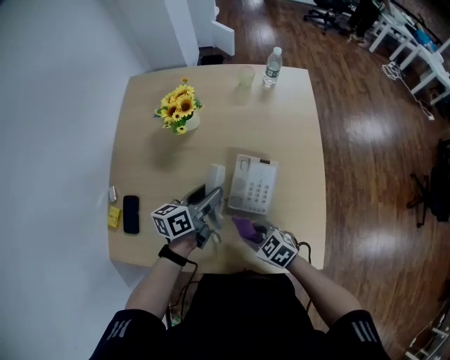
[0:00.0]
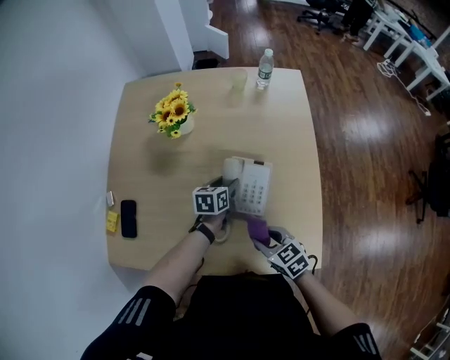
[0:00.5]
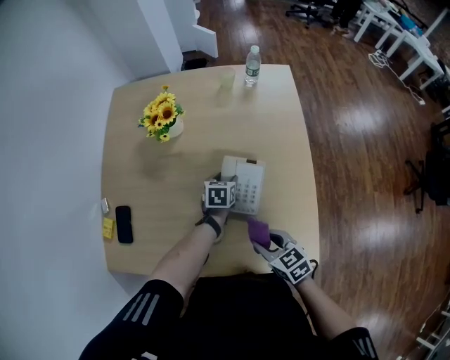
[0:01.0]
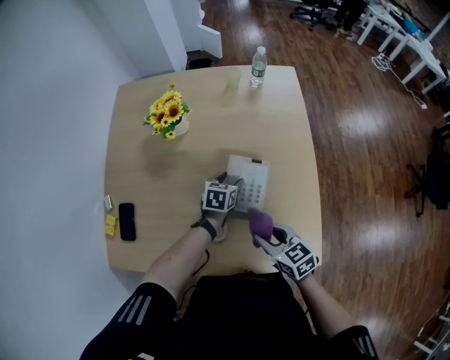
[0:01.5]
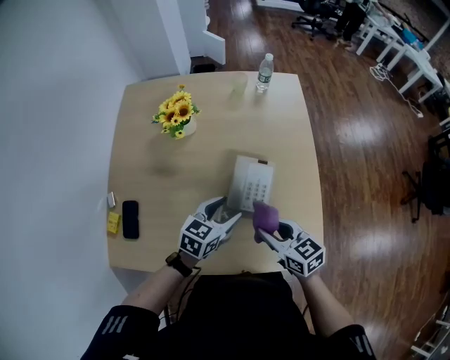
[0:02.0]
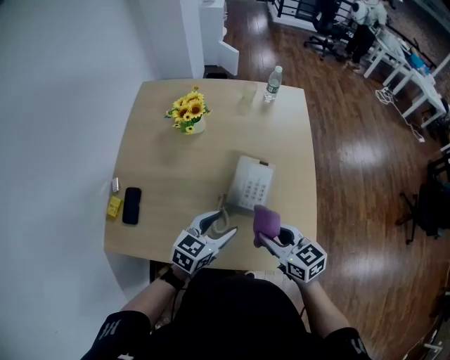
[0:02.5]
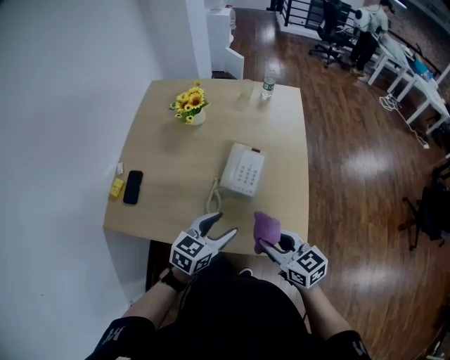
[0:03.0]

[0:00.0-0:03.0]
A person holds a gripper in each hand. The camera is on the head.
0:00.0 to 0:01.5: The left gripper is displaced downward and to the right by roughly 15 cm, and tips its fingers downward by some 30 degrees, while the right gripper heads to the right and upward, covering some 10 cm, and turns by approximately 30 degrees.
0:01.5 to 0:03.0: The left gripper goes about 35 cm backward and upward, and swivels roughly 20 degrees. Meanwhile the right gripper goes some 15 cm backward and upward.

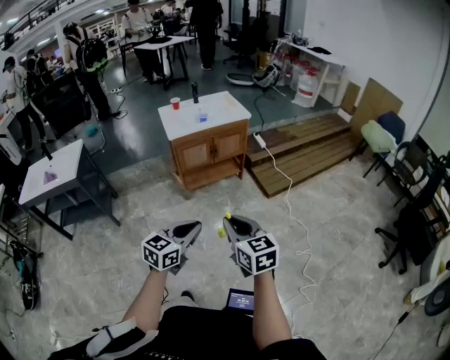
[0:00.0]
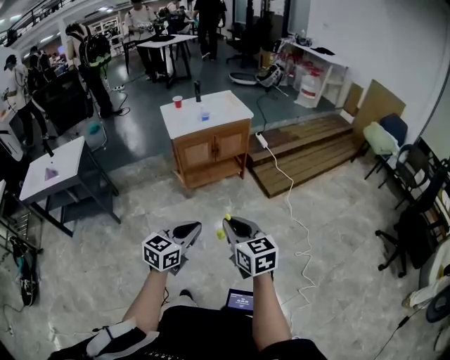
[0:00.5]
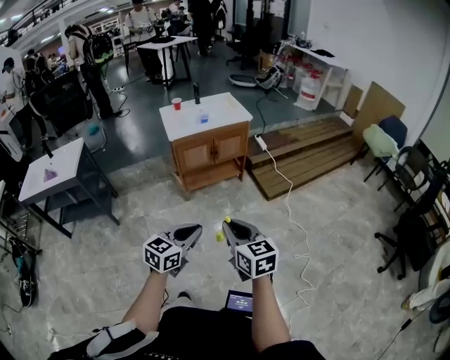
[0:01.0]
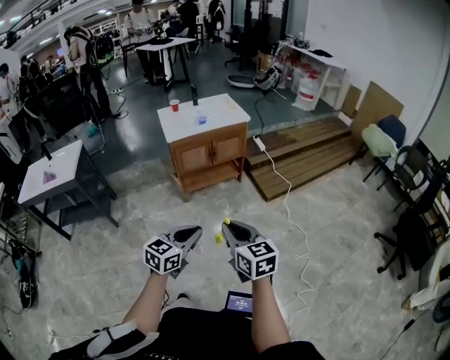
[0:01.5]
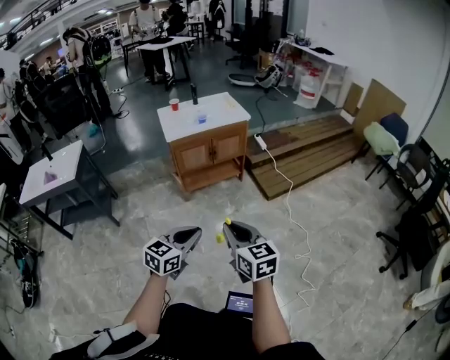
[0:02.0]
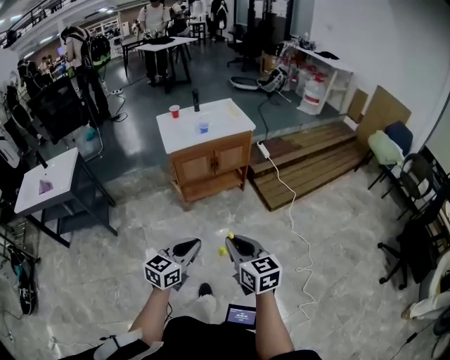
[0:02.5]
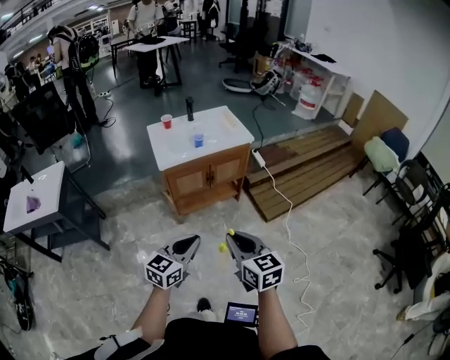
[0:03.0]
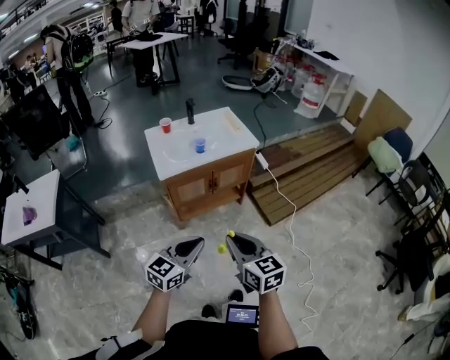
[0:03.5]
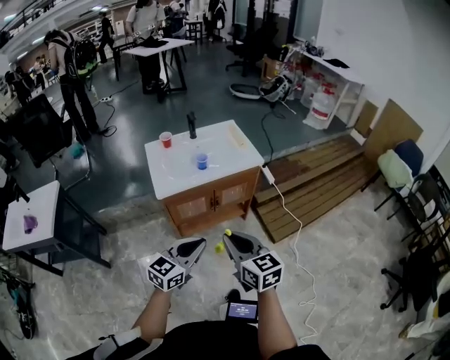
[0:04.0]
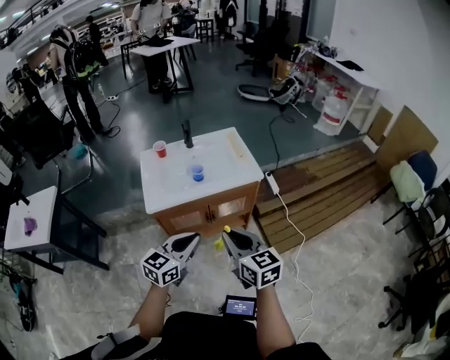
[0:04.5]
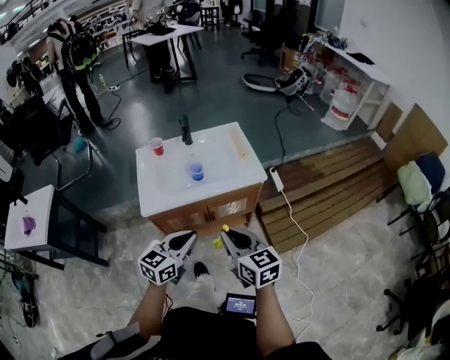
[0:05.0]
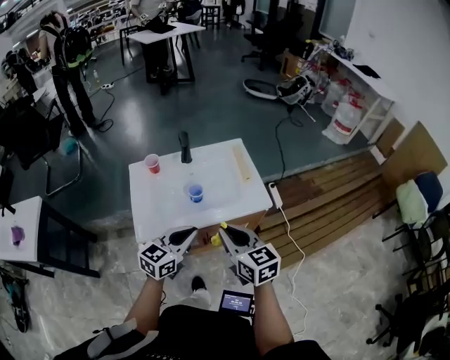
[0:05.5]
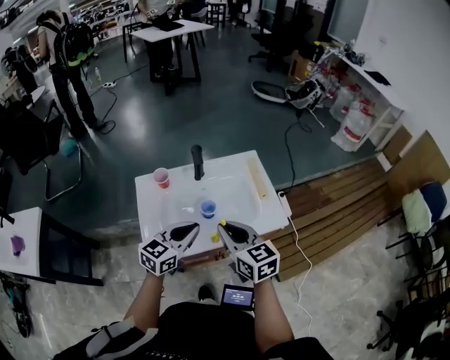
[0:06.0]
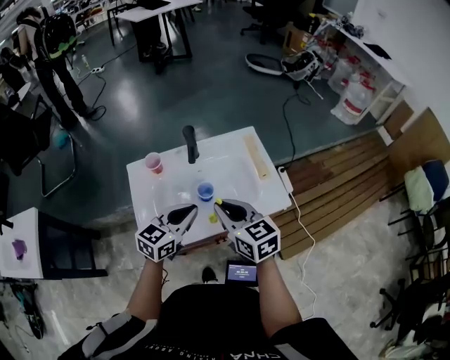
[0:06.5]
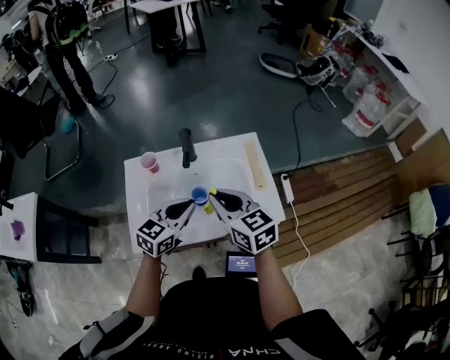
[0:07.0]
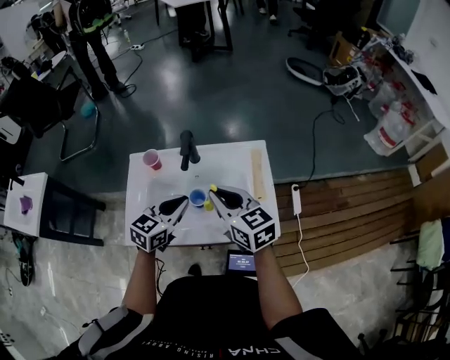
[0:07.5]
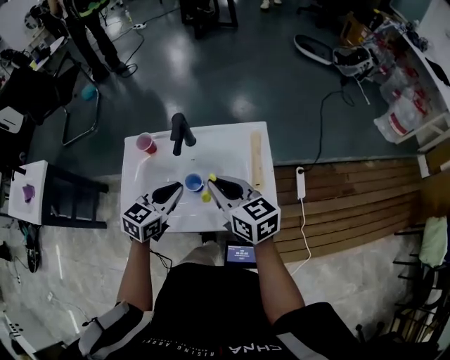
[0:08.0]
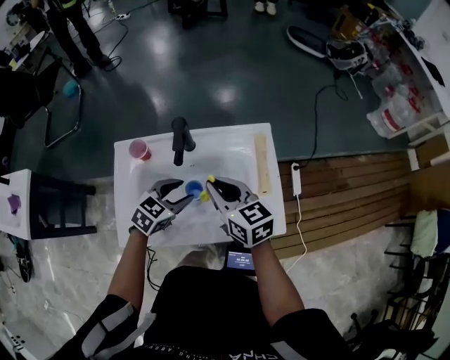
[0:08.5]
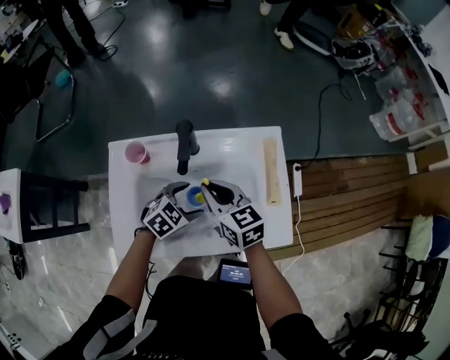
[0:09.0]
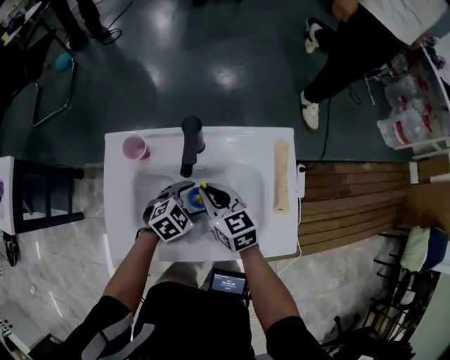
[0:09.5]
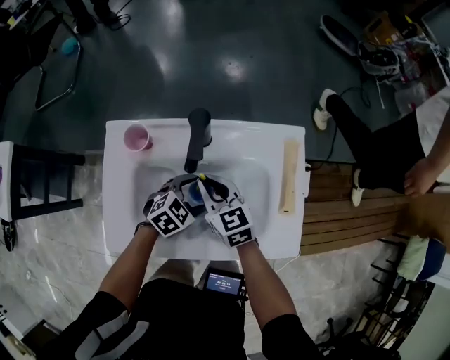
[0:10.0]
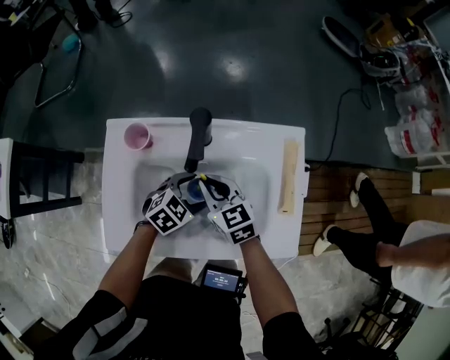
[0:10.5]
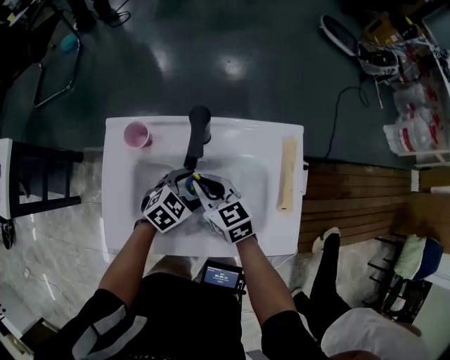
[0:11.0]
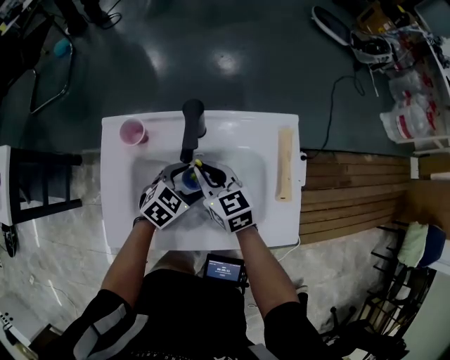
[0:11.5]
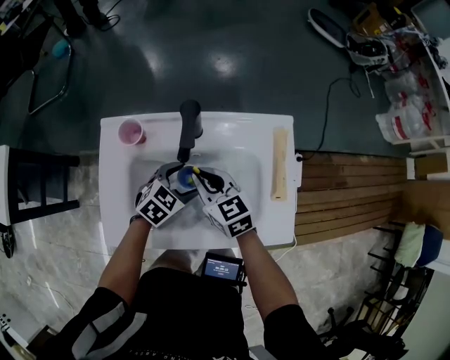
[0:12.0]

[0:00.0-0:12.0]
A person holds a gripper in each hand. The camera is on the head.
0:00.0 to 0:02.0: The grippers stay close to where they were, moving slightly.
0:02.0 to 0:04.0: The two grippers go some 40 cm forward.
0:04.0 to 0:06.0: Both grippers are carried forward, about 40 cm.
0:06.0 to 0:08.0: Both grippers travel together forward and to the right, roughly 15 cm. The left gripper swivels about 20 degrees, while the right gripper rotates about 20 degrees.
0:08.0 to 0:10.0: The left gripper shifts approximately 20 cm downward, changes its angle by roughly 30 degrees, and opens its fingers. Meanwhile the right gripper goes some 25 cm downward, to the left and forward.
0:10.0 to 0:12.0: The grippers move only a little.

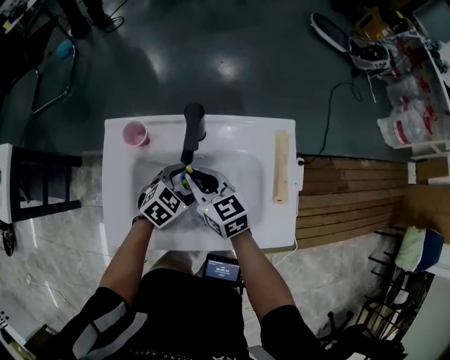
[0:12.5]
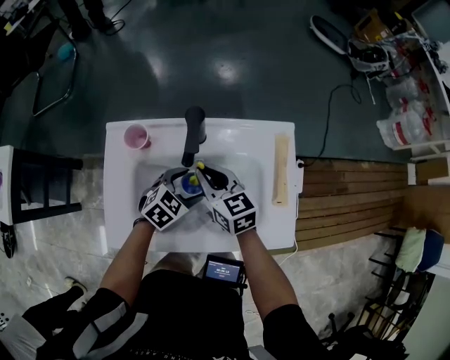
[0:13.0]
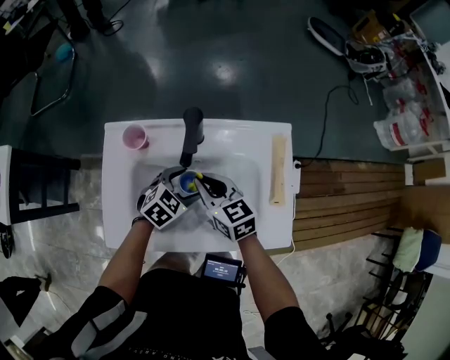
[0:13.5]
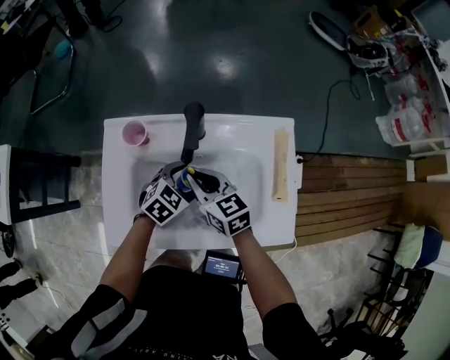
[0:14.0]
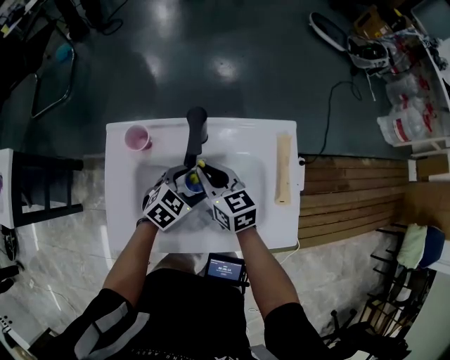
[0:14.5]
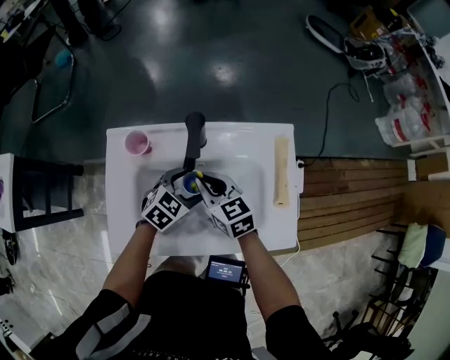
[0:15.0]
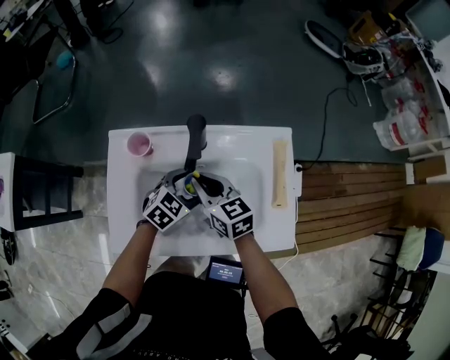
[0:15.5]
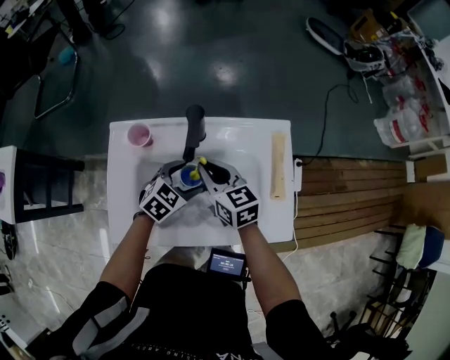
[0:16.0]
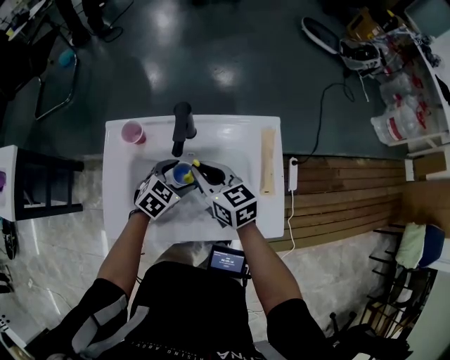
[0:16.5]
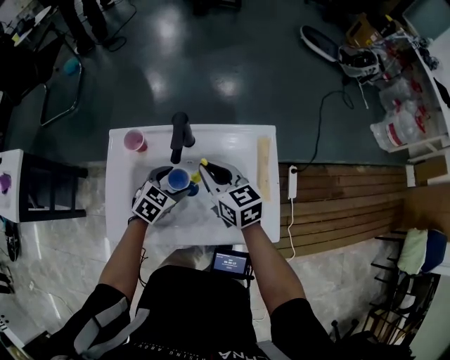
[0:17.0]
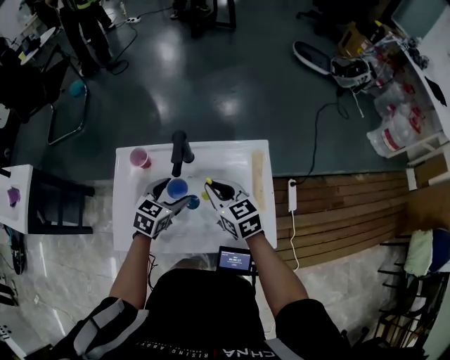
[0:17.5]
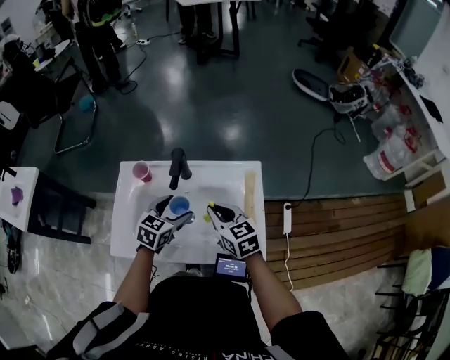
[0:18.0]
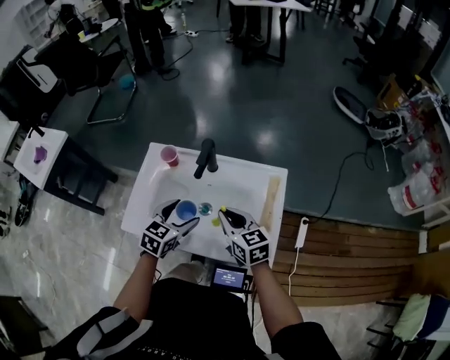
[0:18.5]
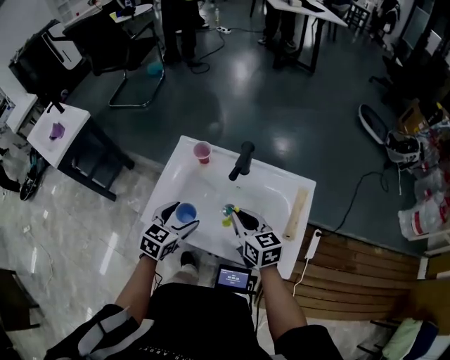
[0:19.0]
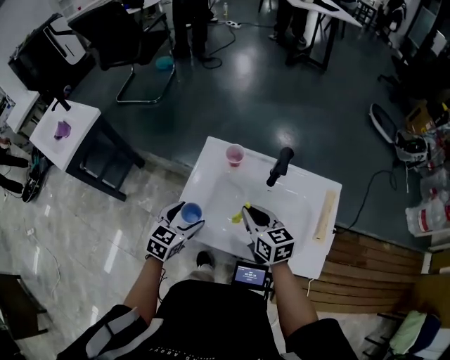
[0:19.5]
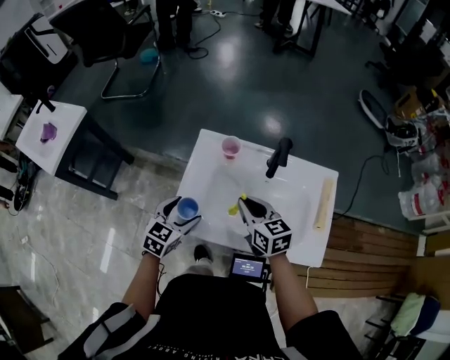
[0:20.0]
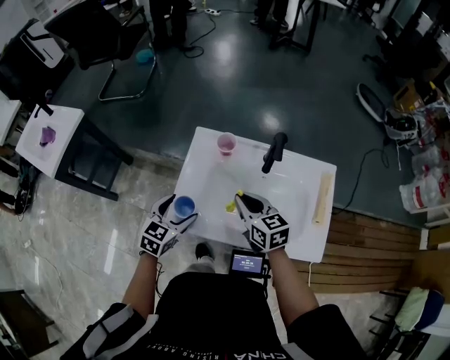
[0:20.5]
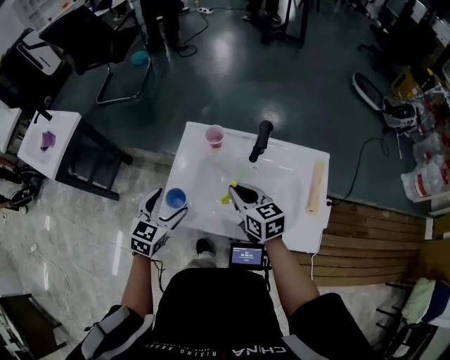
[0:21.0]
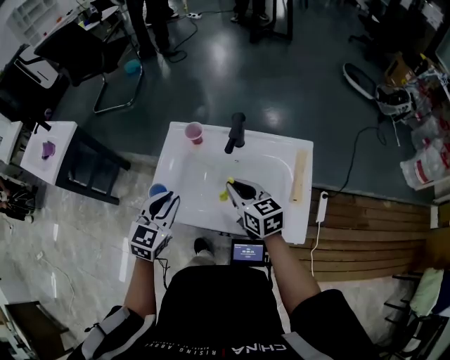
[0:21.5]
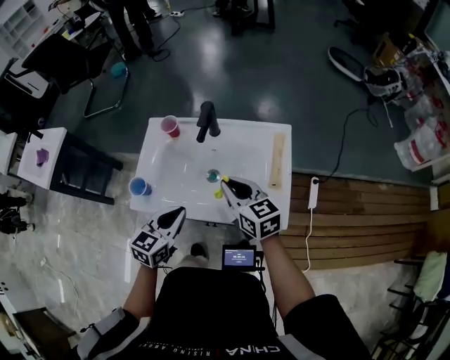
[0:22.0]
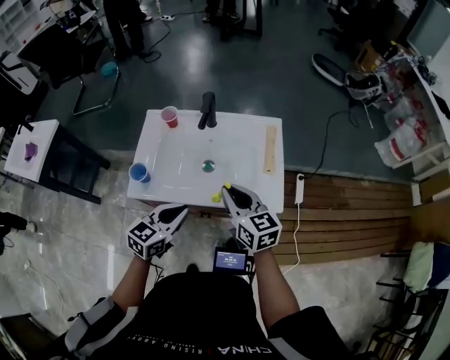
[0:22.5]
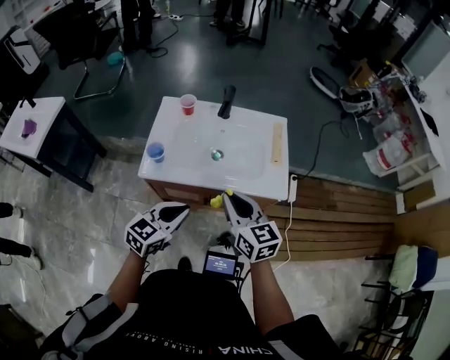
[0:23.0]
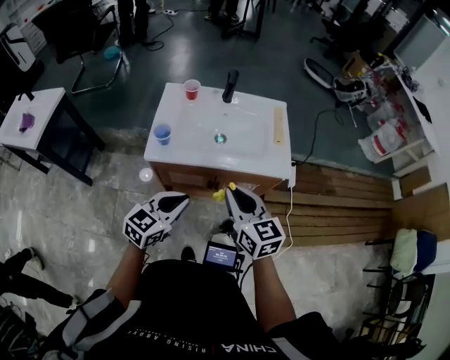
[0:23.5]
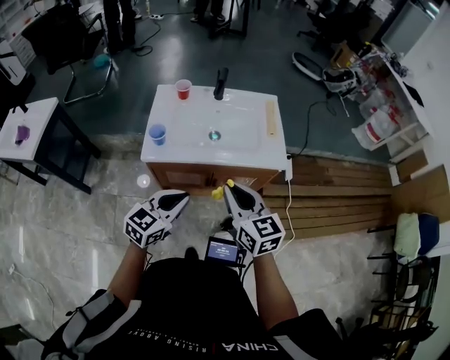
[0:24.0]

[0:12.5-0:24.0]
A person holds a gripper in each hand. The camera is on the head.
0:12.5 to 0:14.5: The grippers make only small movements.
0:14.5 to 0:16.5: The right gripper travels upward by some 5 cm.
0:16.5 to 0:18.5: The left gripper heads upward and backward, covering roughly 15 cm, and rotates about 30 degrees; the right gripper moves backward and to the right, some 10 cm.
0:18.5 to 0:20.0: The grippers both shift to the left by some 20 cm.
0:20.0 to 0:22.0: Both grippers move to the right and backward, roughly 20 cm. The left gripper closes up.
0:22.0 to 0:24.0: The grippers both shift backward by approximately 25 cm. The left gripper changes its angle by some 20 degrees.
